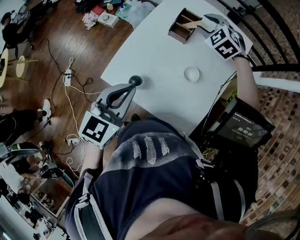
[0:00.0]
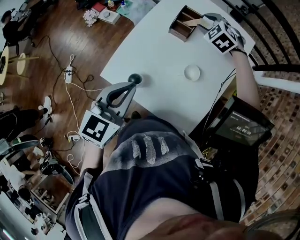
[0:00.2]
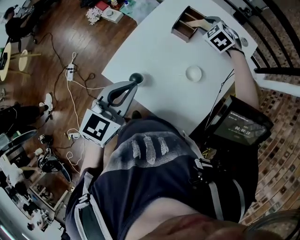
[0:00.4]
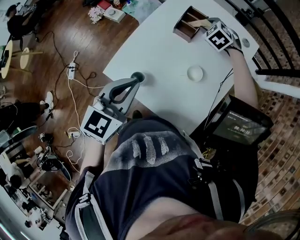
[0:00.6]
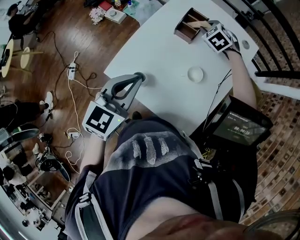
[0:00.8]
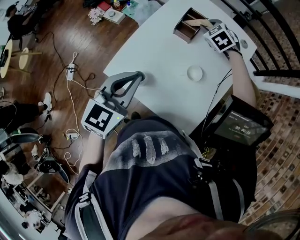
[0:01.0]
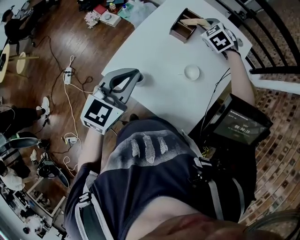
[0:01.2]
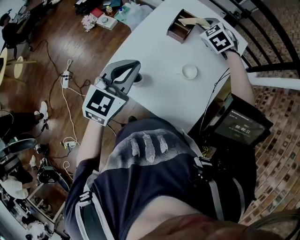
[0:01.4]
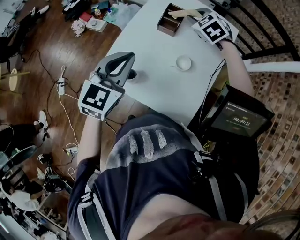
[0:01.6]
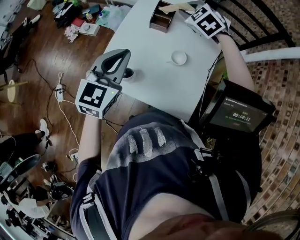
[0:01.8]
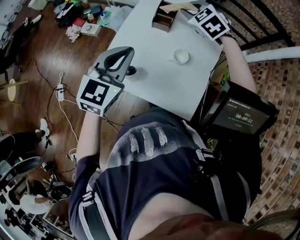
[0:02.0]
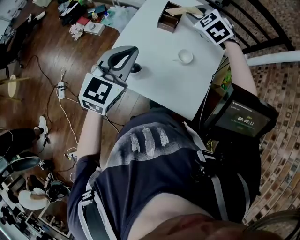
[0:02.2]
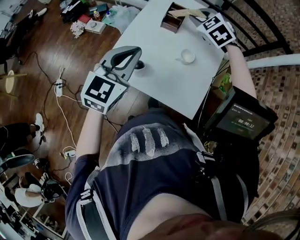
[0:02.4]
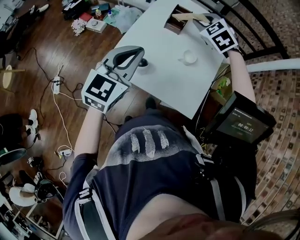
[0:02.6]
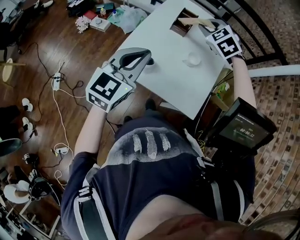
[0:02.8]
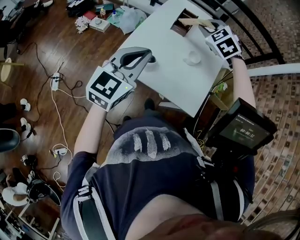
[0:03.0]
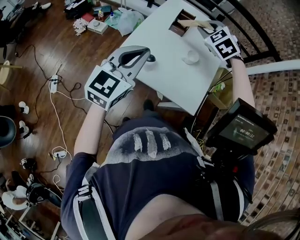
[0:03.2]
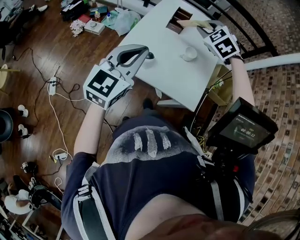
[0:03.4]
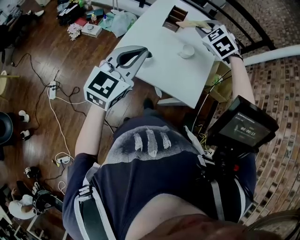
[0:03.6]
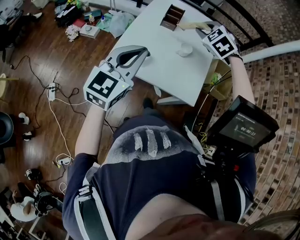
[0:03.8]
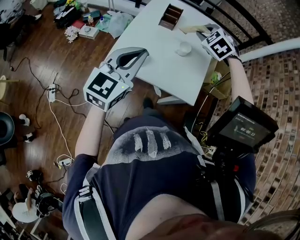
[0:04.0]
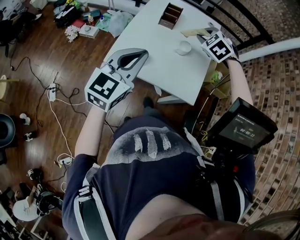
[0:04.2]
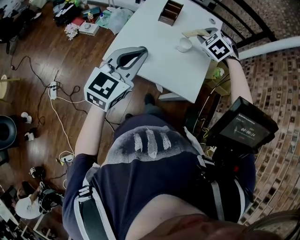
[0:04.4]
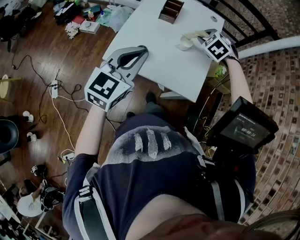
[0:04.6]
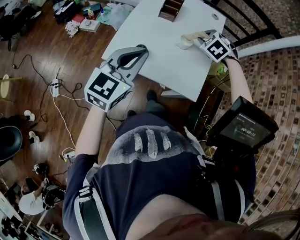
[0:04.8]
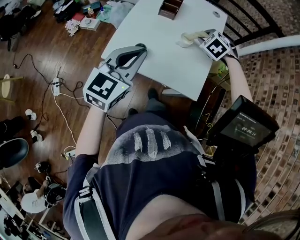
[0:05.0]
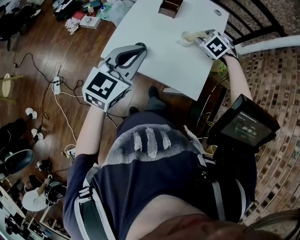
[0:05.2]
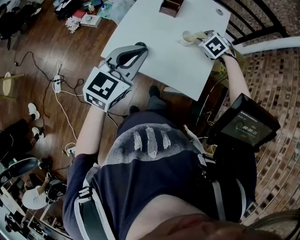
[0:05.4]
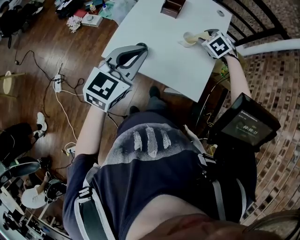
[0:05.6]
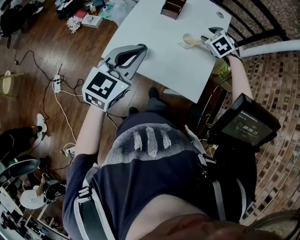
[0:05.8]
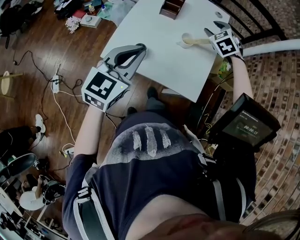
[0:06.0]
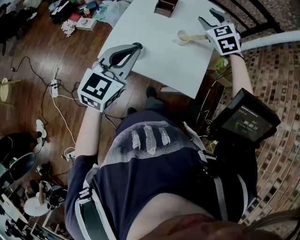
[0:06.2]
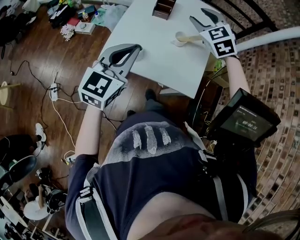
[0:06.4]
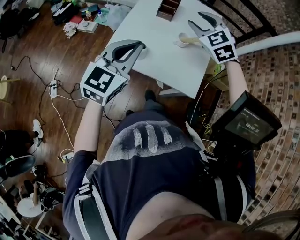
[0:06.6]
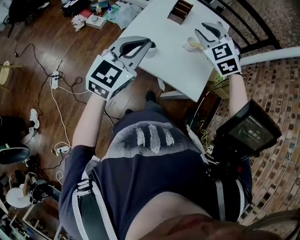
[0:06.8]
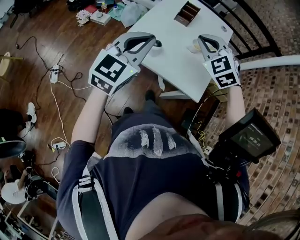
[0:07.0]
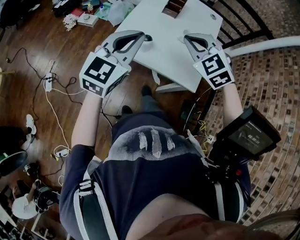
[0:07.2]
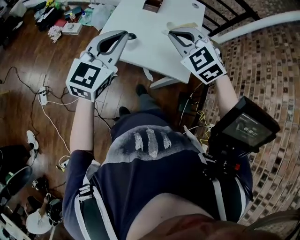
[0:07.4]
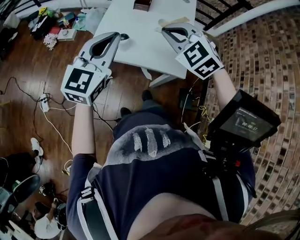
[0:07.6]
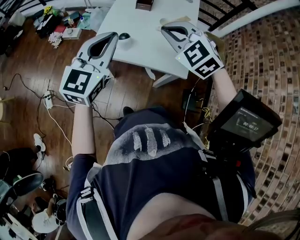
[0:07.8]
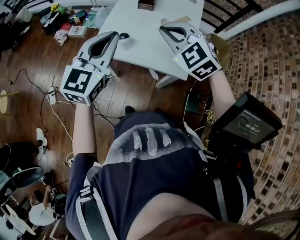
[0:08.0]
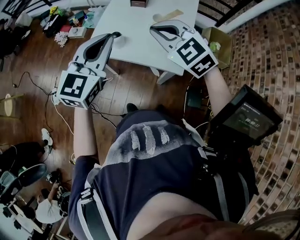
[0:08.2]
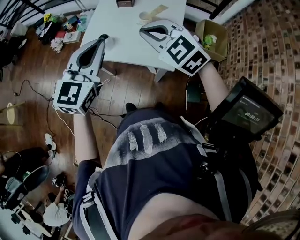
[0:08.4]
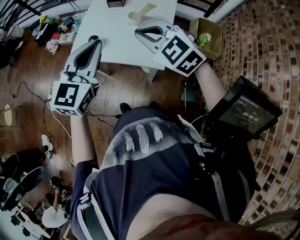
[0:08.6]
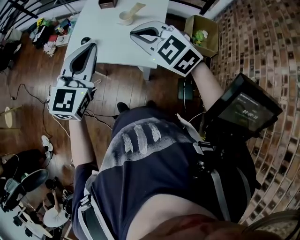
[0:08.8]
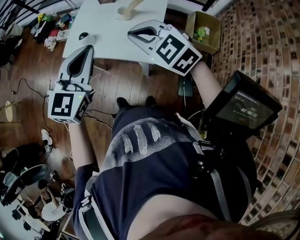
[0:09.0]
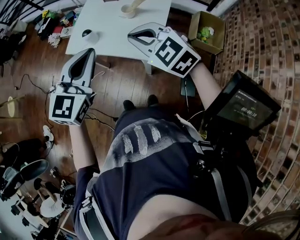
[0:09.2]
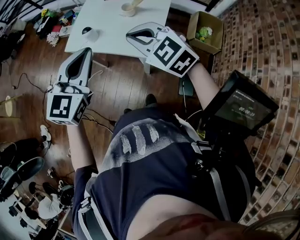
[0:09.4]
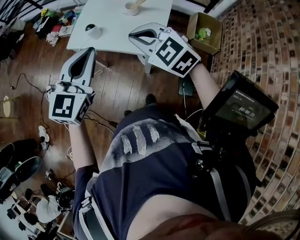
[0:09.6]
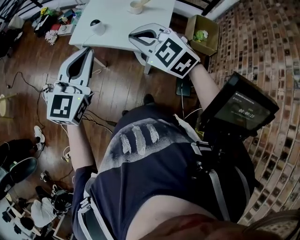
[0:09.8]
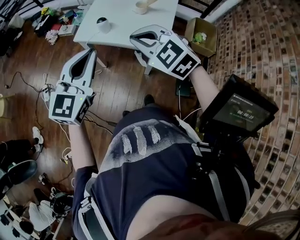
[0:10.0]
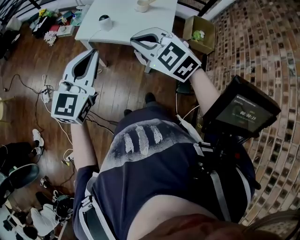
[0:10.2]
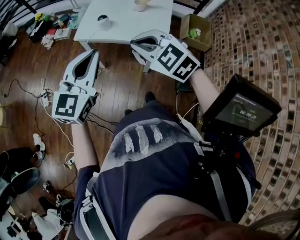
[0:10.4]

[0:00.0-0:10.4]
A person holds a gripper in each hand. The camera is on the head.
0:00.0 to 0:01.4: The right gripper reaches about 10 cm downward, then returns, and closes its fingers. The left gripper shifts by roughly 5 cm.
0:01.4 to 0:03.0: The left gripper heads backward, covering roughly 10 cm. The right gripper is displaced backward and upward by some 20 cm.
0:03.0 to 0:04.4: The right gripper goes about 10 cm to the right and downward.
0:04.4 to 0:06.0: The right gripper moves forward, roughly 5 cm, goes downward and returns, roughly 10 cm each way, and opens its fingers.
0:06.0 to 0:07.4: The left gripper travels to the left by approximately 5 cm. Meanwhile the right gripper is displaced backward, to the left and upward by roughly 30 cm, turns by approximately 20 degrees, and closes up.
0:07.4 to 0:09.0: Both grippers move to the right and backward, roughly 15 cm. The right gripper changes its angle by about 20 degrees.
0:09.0 to 0:10.4: The grippers both shift to the left and backward by about 20 cm.

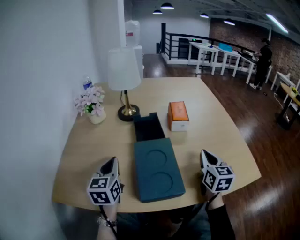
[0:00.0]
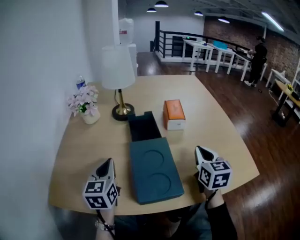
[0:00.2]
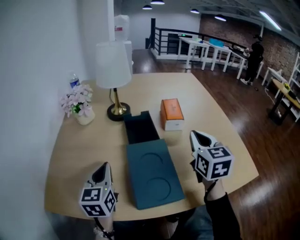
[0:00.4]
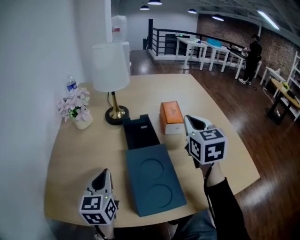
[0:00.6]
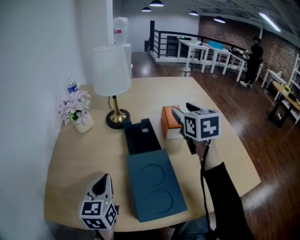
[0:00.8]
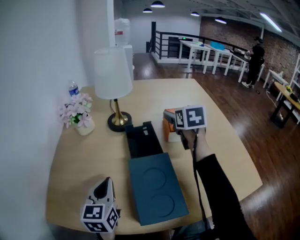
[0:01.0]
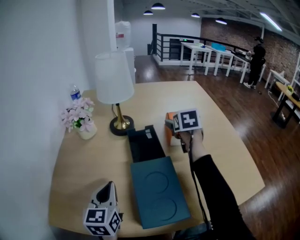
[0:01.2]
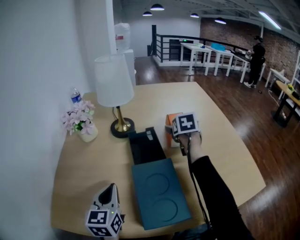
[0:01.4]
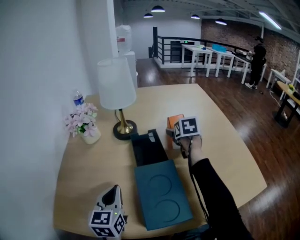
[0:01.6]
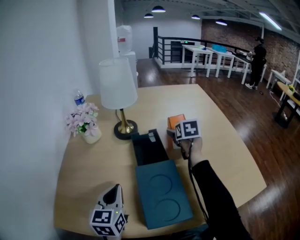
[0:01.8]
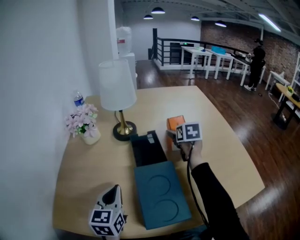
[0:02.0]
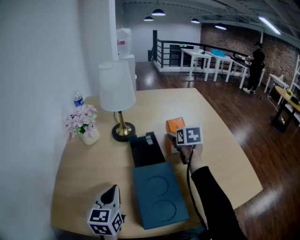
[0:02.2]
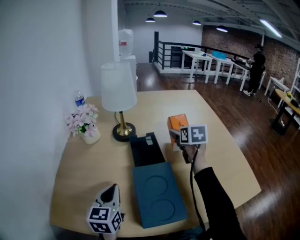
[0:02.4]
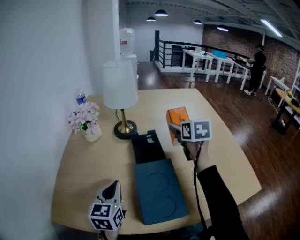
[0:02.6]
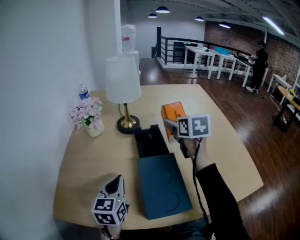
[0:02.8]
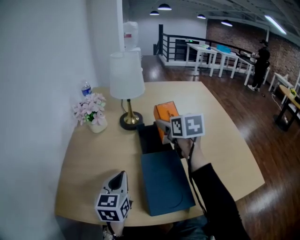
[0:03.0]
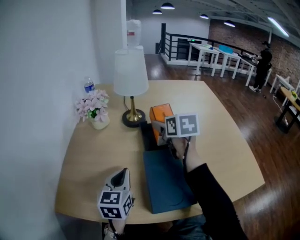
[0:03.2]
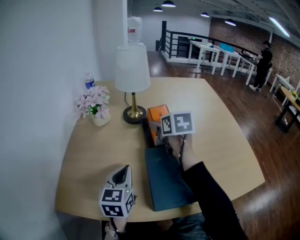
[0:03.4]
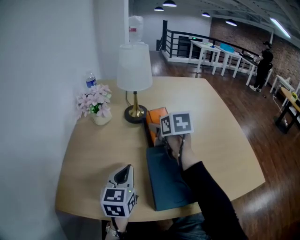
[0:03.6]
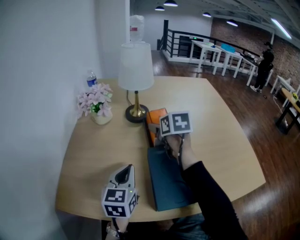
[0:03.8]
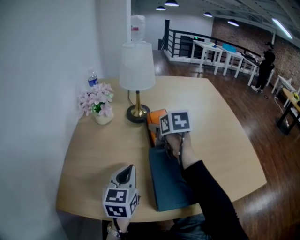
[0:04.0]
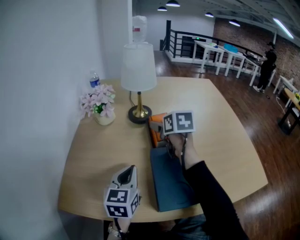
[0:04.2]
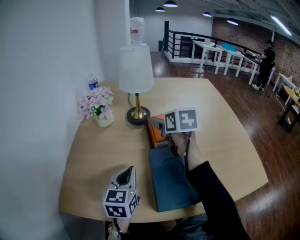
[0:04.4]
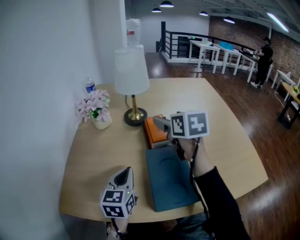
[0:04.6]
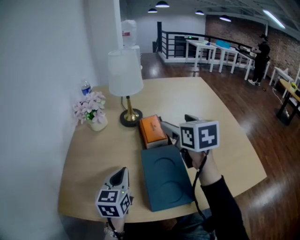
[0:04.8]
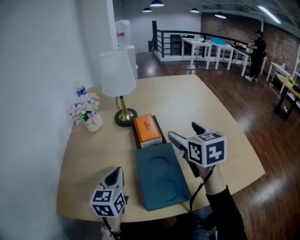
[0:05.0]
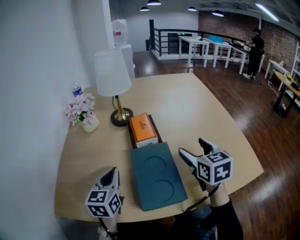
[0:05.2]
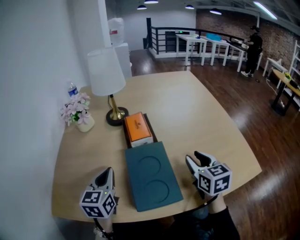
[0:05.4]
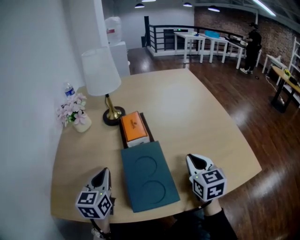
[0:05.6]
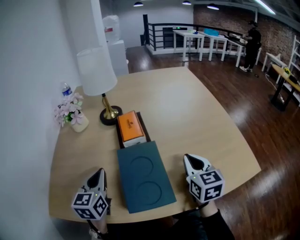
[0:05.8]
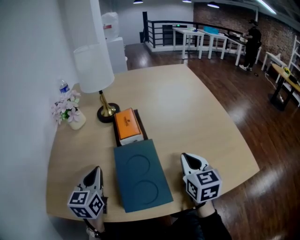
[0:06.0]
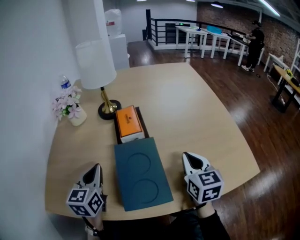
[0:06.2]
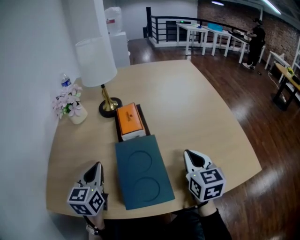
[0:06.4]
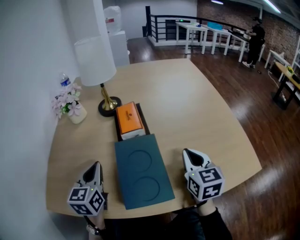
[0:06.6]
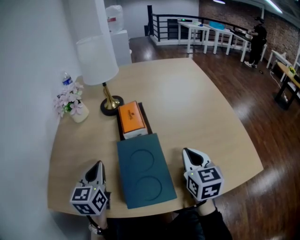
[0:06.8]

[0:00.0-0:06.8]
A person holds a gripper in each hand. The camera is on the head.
0:00.0 to 0:01.4: The right gripper travels forward by roughly 25 cm, rotates some 20 degrees, and opens its fingers.
0:01.4 to 0:02.8: The right gripper goes roughly 15 cm upward, backward and to the left.
0:02.8 to 0:04.0: The right gripper goes about 15 cm to the left and downward.
0:04.0 to 0:05.4: The right gripper is displaced backward and to the right by about 25 cm, and closes its fingers.
0:05.4 to 0:06.8: The grippers move only a little.

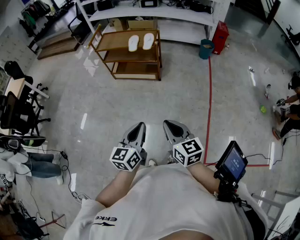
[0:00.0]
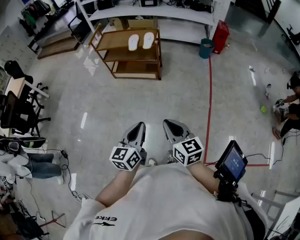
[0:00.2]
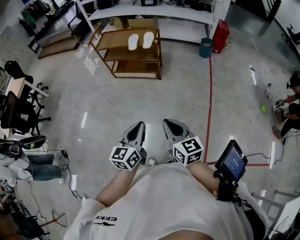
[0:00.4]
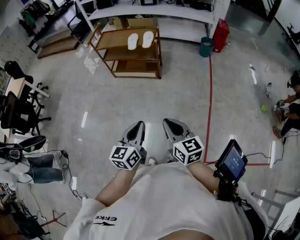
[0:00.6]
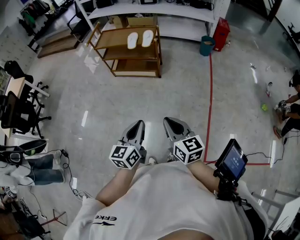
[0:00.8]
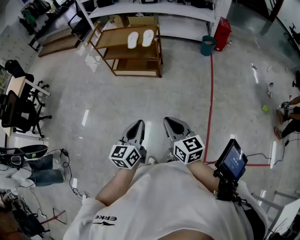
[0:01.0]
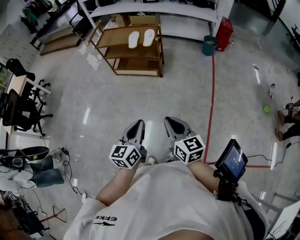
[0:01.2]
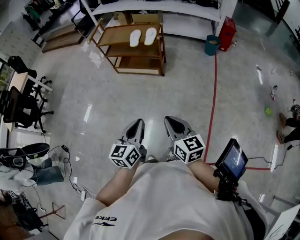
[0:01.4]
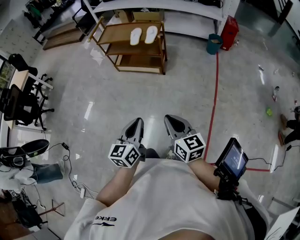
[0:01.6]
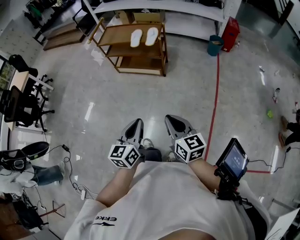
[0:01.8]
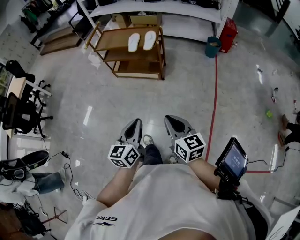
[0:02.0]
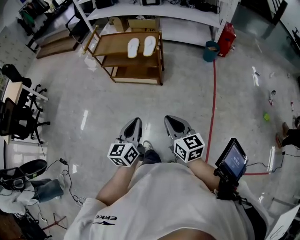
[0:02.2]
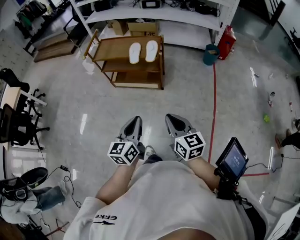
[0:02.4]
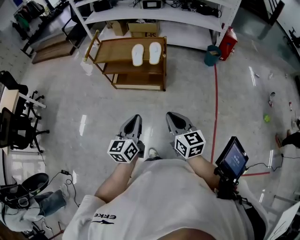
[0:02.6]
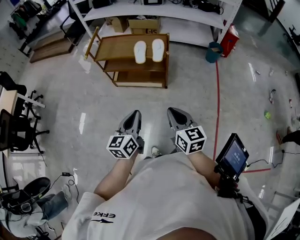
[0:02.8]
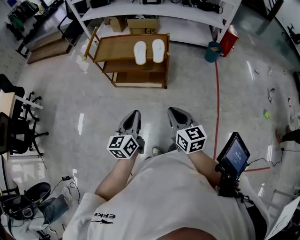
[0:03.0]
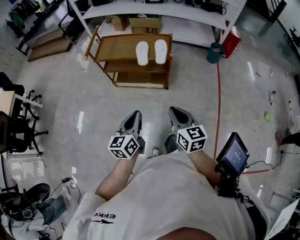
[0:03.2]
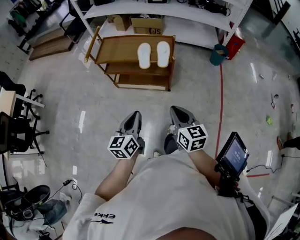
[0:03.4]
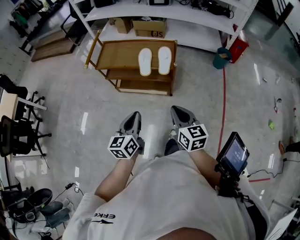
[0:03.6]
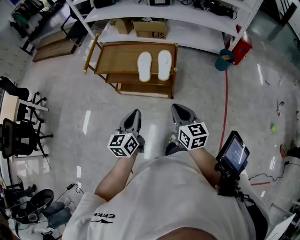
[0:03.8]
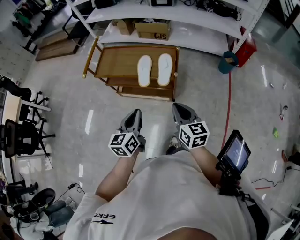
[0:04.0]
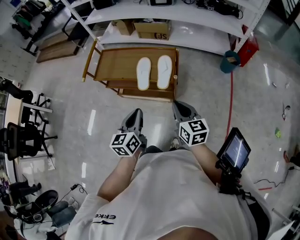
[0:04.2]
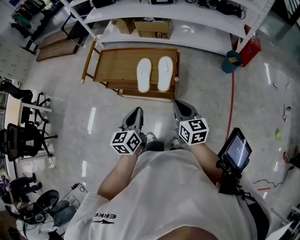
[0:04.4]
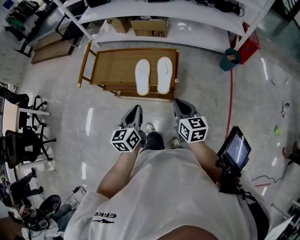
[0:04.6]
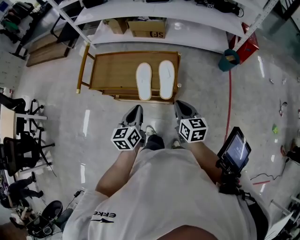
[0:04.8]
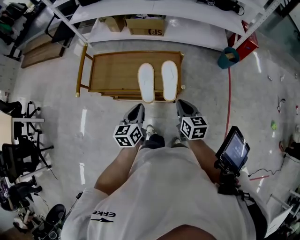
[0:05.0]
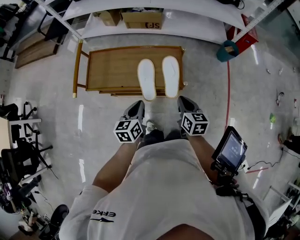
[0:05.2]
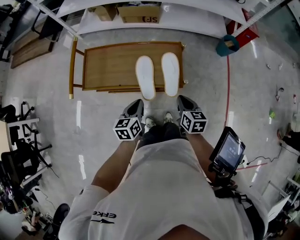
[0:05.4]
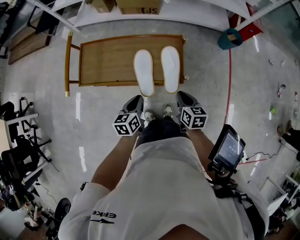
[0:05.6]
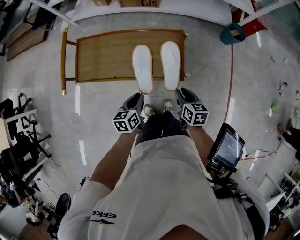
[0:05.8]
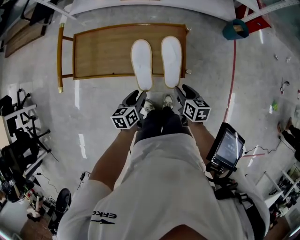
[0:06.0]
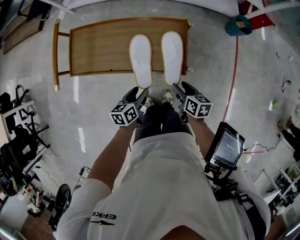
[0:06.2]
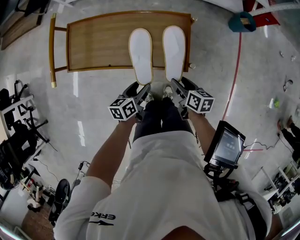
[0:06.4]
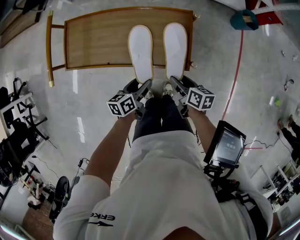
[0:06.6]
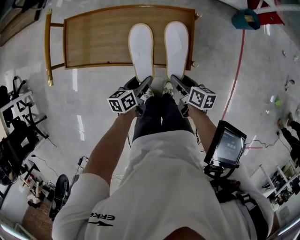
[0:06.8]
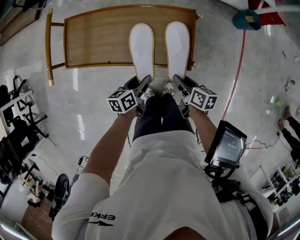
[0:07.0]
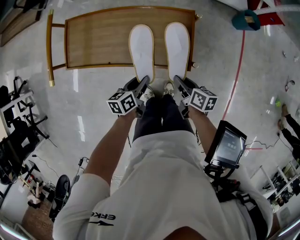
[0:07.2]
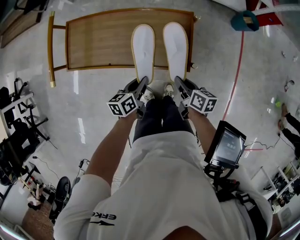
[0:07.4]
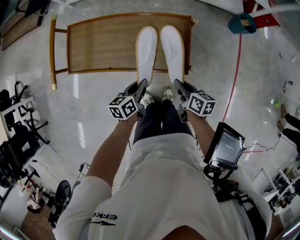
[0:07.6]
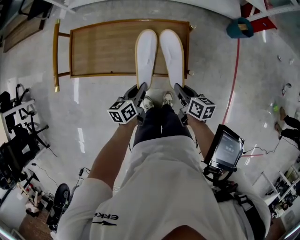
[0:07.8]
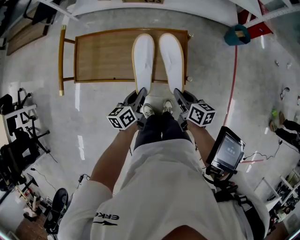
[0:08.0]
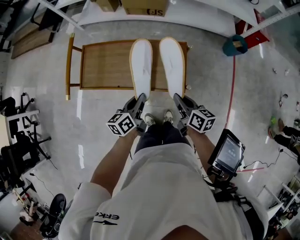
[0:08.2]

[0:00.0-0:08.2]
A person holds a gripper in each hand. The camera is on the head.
0:00.0 to 0:01.6: The right gripper ends up approximately 5 cm from where it was.
0:01.6 to 0:03.2: The grippers both shift forward and to the left by roughly 35 cm.
0:03.2 to 0:05.0: The two grippers go roughly 40 cm forward.
0:05.0 to 0:06.6: Both grippers travel together downward, about 15 cm. The left gripper rotates about 30 degrees, and opens its fingers; the right gripper rotates roughly 30 degrees, and opens up.
0:06.6 to 0:08.2: Both grippers travel together upward, roughly 10 cm. The left gripper closes its fingers; the right gripper closes its fingers.
